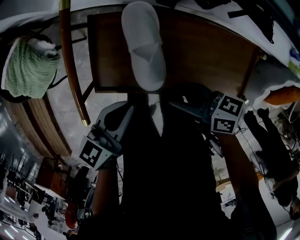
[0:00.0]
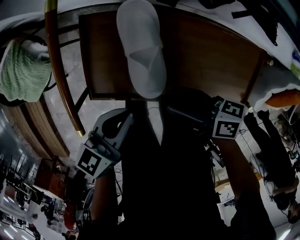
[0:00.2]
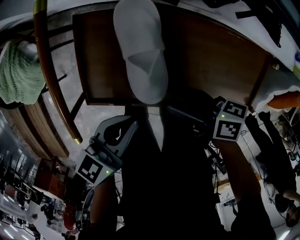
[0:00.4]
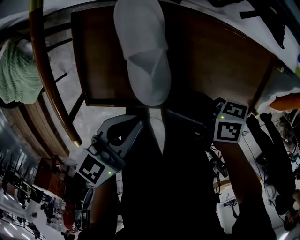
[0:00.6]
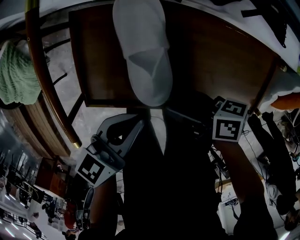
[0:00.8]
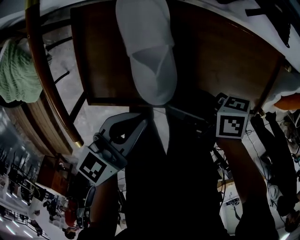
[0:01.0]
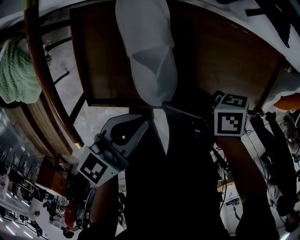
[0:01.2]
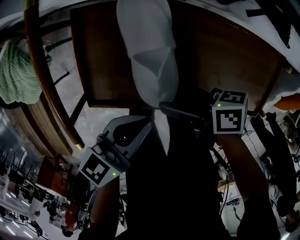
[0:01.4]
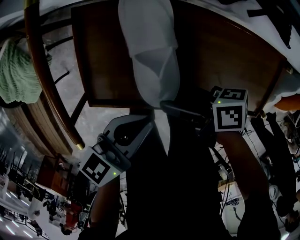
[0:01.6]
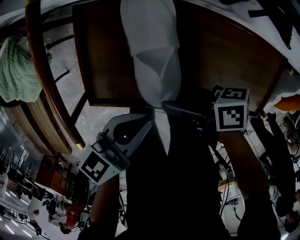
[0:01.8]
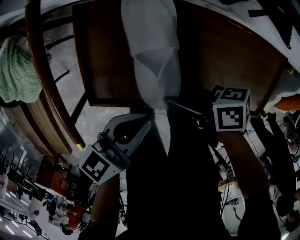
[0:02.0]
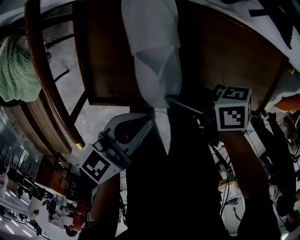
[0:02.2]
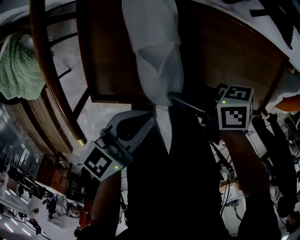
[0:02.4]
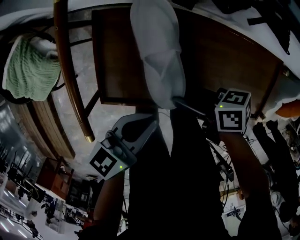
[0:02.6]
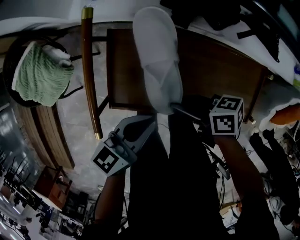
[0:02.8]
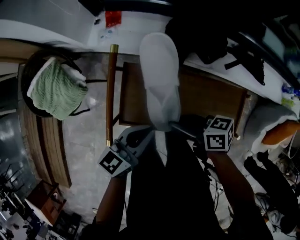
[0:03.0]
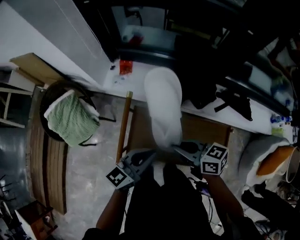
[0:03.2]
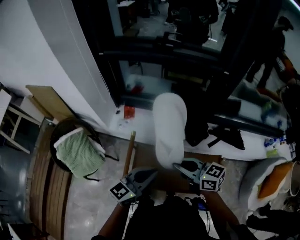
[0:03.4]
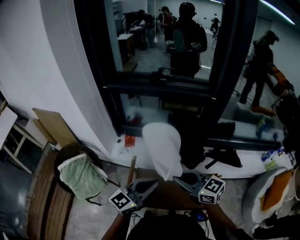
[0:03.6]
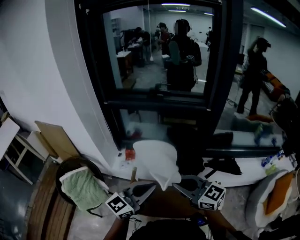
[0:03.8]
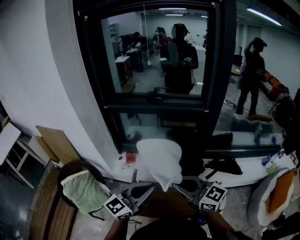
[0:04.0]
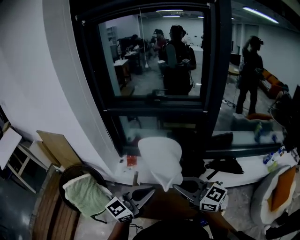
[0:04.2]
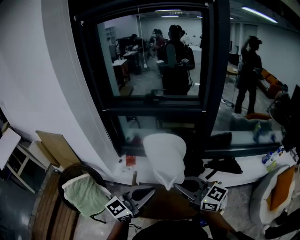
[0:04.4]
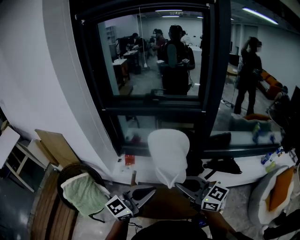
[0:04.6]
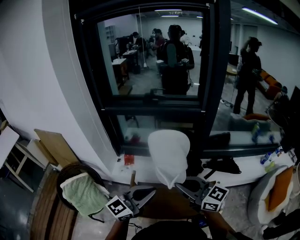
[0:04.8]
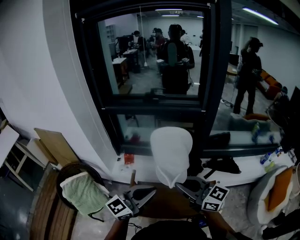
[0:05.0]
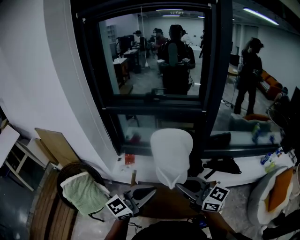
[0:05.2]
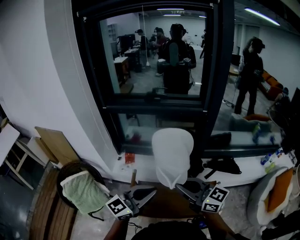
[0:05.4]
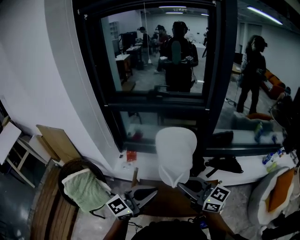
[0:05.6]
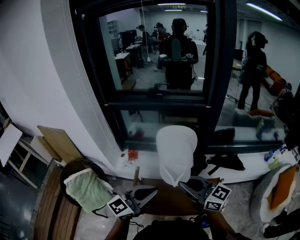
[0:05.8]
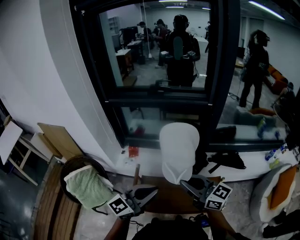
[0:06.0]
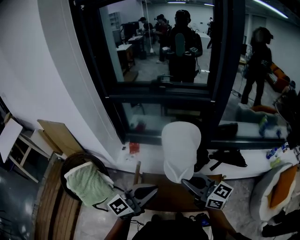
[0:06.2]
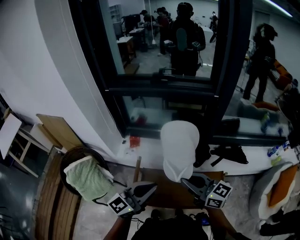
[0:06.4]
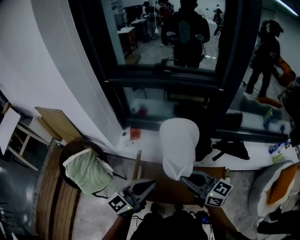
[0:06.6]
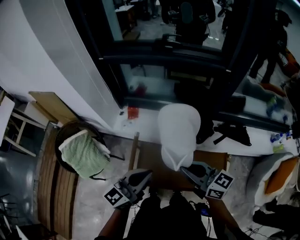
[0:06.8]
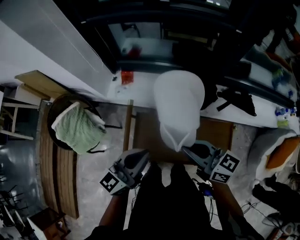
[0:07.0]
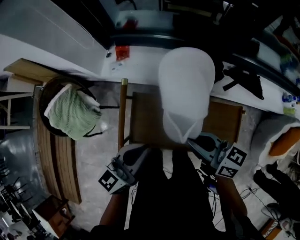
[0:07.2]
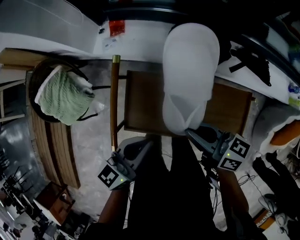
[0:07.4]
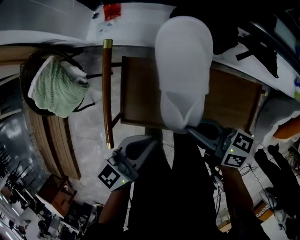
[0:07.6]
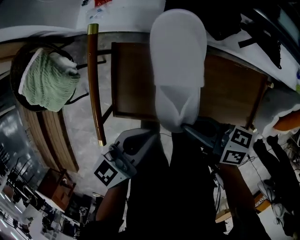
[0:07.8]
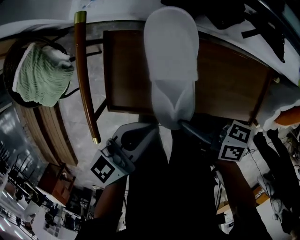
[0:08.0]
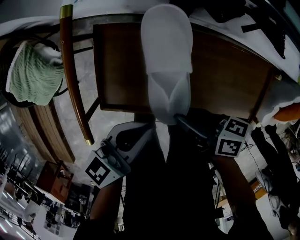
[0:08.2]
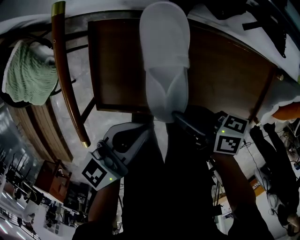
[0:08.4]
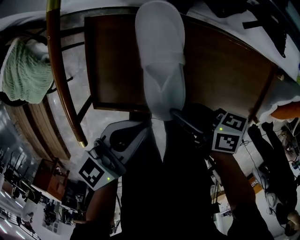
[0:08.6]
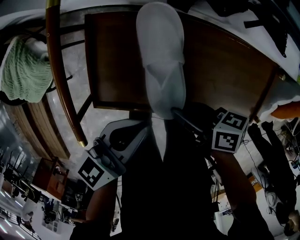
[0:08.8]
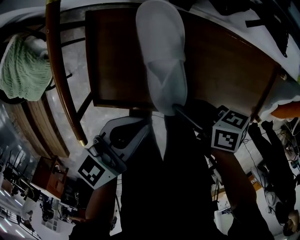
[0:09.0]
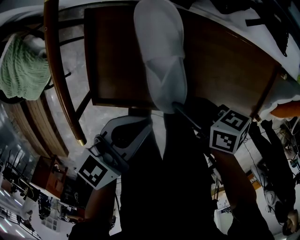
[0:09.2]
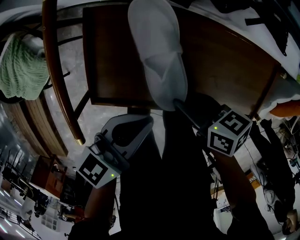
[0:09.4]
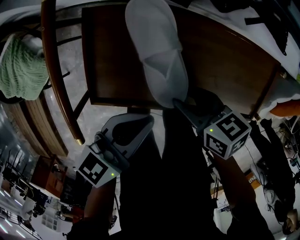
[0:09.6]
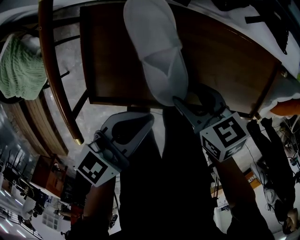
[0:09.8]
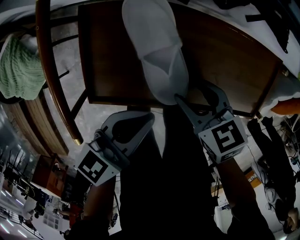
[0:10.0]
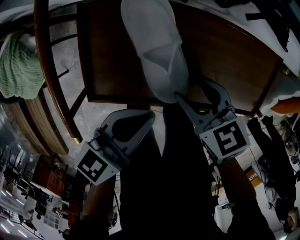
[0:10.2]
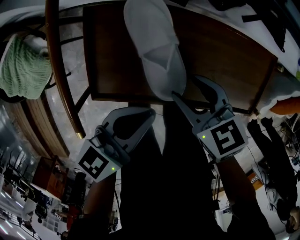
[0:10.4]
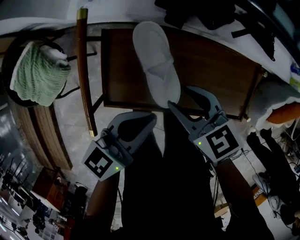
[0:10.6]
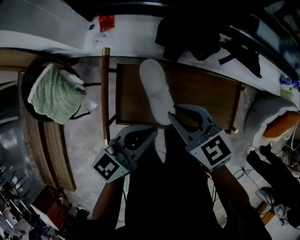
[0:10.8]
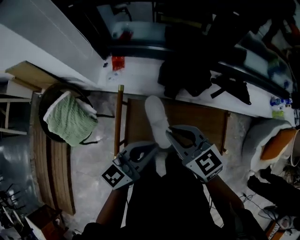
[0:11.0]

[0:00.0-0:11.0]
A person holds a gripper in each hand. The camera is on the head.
0:00.0 to 0:01.6: The right gripper is displaced downward by some 10 cm, and turns by about 20 degrees, while the left gripper shifts roughly 5 cm downward.
0:01.6 to 0:03.2: The two grippers go some 20 cm upward. The right gripper twists approximately 50 degrees counterclockwise, seen from behind, and closes. Meanwhile the left gripper turns by some 20 degrees.
0:03.2 to 0:04.8: Both grippers move upward, some 25 cm. The left gripper rotates about 30 degrees. The right gripper rotates about 40 degrees.
0:04.8 to 0:06.2: The grippers make only small movements.
0:06.2 to 0:07.8: Both grippers move downward, approximately 30 cm. The left gripper turns by roughly 40 degrees. Meanwhile the right gripper rotates around the line of its fingers by roughly 50 degrees, clockwise from behind.
0:07.8 to 0:09.4: The left gripper moves downward, some 5 cm. Meanwhile the right gripper heads downward, covering roughly 10 cm, and swivels some 20 degrees.
0:09.4 to 0:11.0: The grippers both shift upward by some 25 cm. The right gripper rotates around the line of its fingers by about 50 degrees, counterclockwise from behind, and opens and closes again, while the left gripper rotates some 20 degrees.

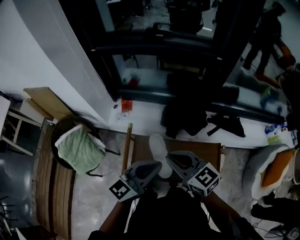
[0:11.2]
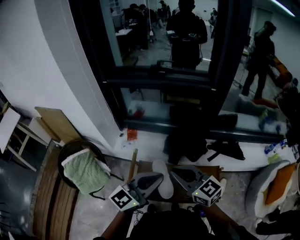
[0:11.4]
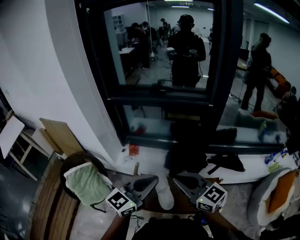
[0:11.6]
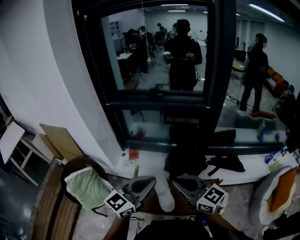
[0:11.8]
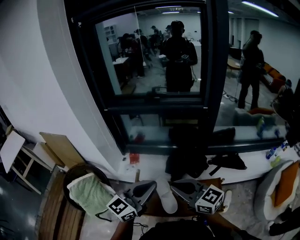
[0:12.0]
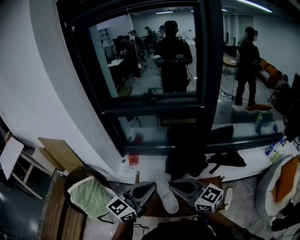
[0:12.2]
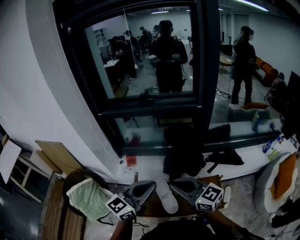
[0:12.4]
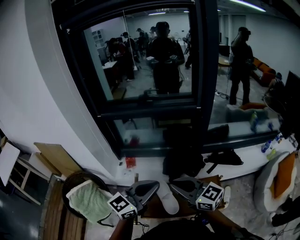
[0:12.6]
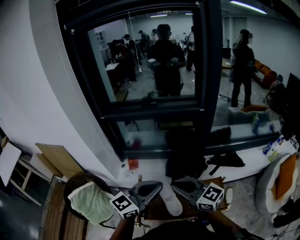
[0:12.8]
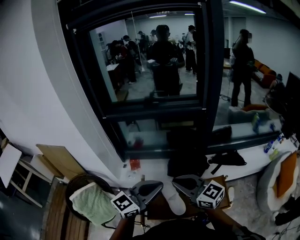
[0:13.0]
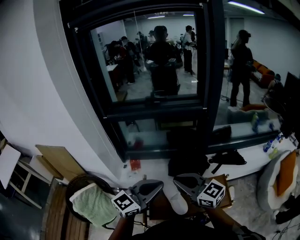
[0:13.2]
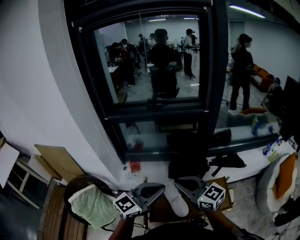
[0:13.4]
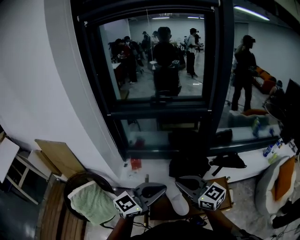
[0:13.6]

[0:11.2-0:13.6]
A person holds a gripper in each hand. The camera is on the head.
0:11.2 to 0:12.4: Both grippers travel together upward, approximately 10 cm.
0:12.4 to 0:13.6: The two grippers go approximately 5 cm to the left.

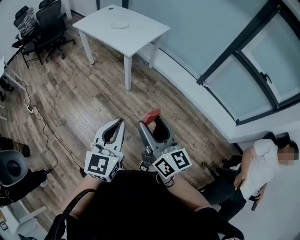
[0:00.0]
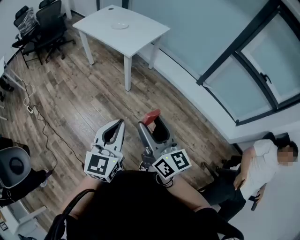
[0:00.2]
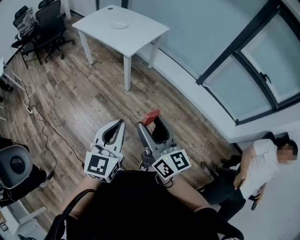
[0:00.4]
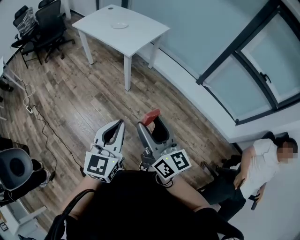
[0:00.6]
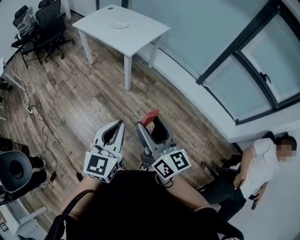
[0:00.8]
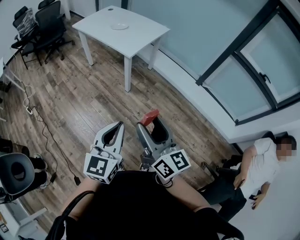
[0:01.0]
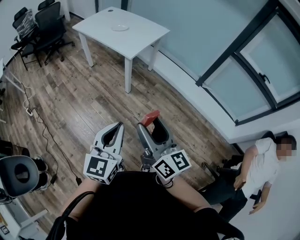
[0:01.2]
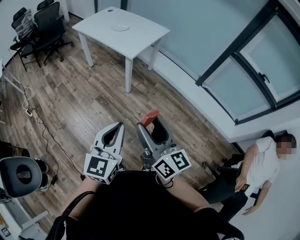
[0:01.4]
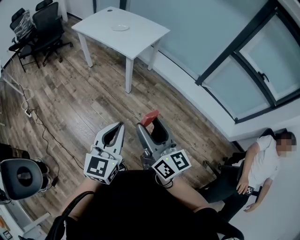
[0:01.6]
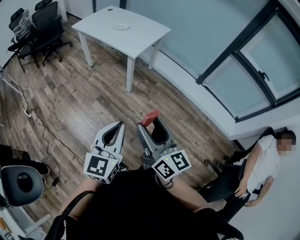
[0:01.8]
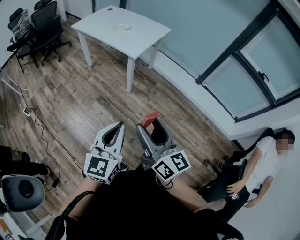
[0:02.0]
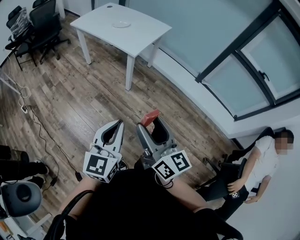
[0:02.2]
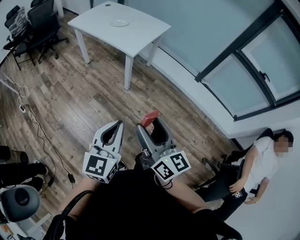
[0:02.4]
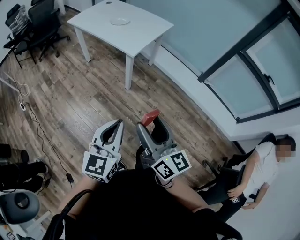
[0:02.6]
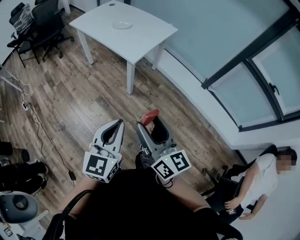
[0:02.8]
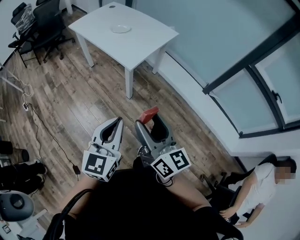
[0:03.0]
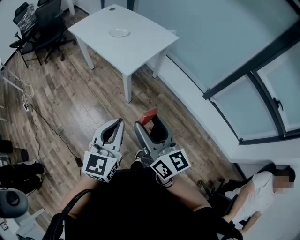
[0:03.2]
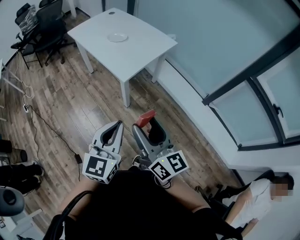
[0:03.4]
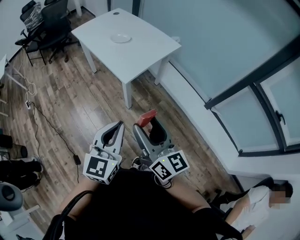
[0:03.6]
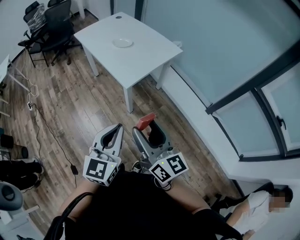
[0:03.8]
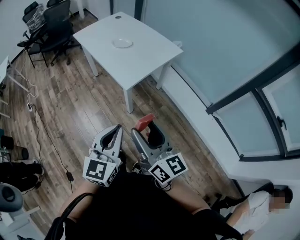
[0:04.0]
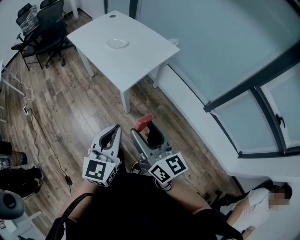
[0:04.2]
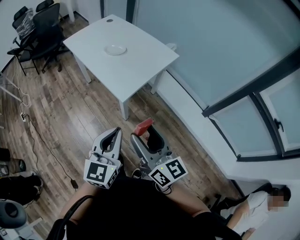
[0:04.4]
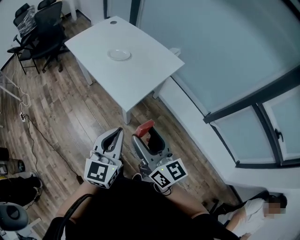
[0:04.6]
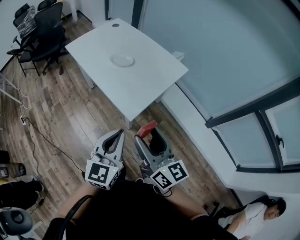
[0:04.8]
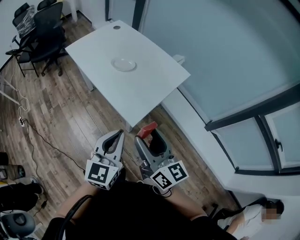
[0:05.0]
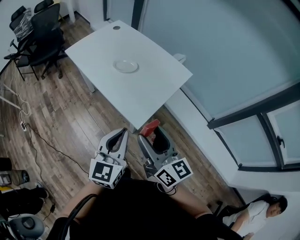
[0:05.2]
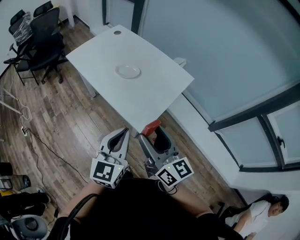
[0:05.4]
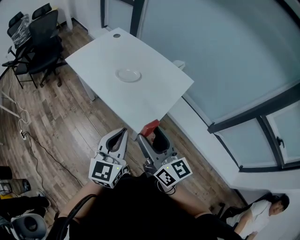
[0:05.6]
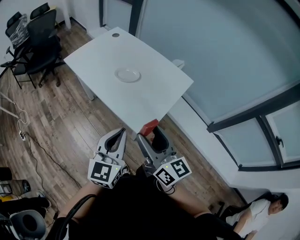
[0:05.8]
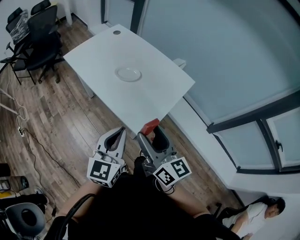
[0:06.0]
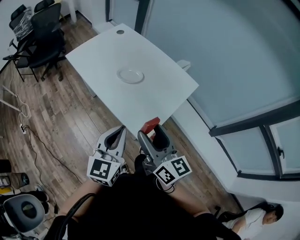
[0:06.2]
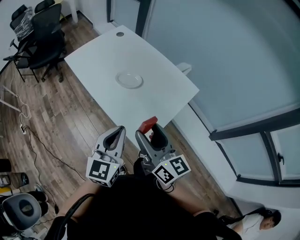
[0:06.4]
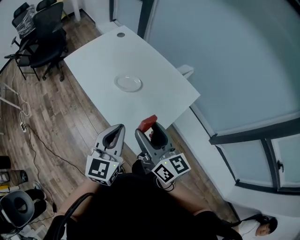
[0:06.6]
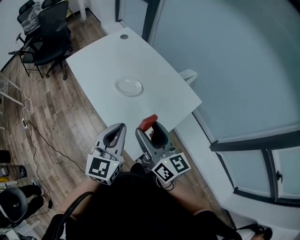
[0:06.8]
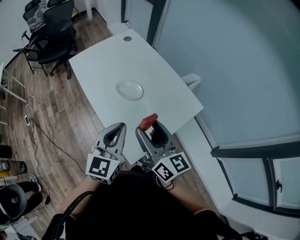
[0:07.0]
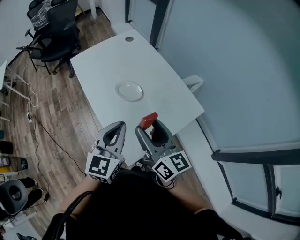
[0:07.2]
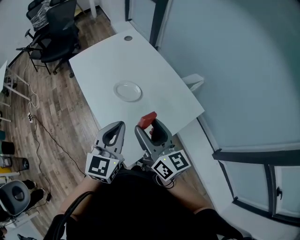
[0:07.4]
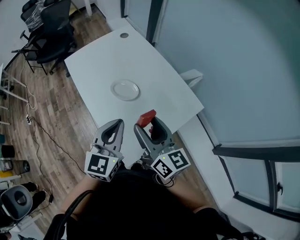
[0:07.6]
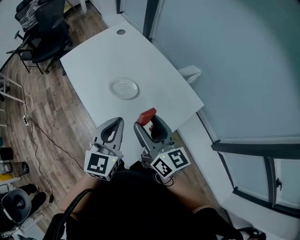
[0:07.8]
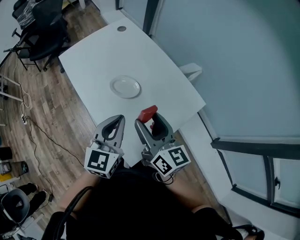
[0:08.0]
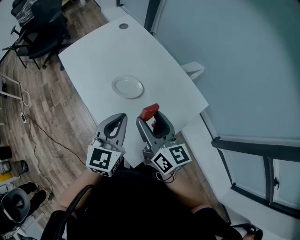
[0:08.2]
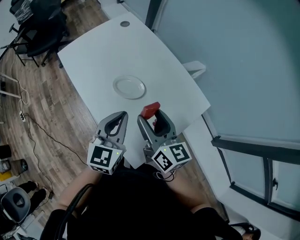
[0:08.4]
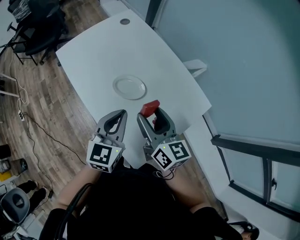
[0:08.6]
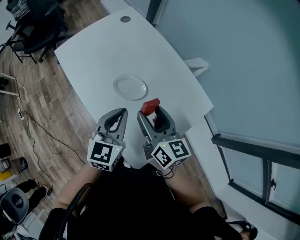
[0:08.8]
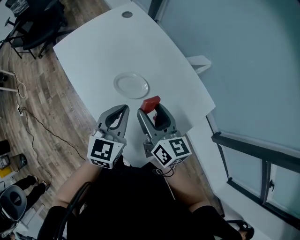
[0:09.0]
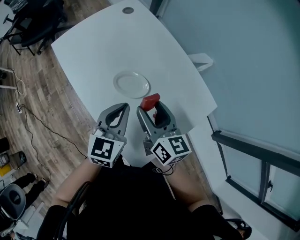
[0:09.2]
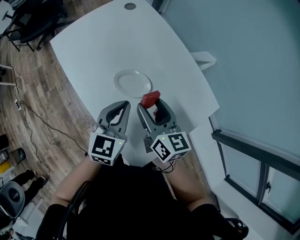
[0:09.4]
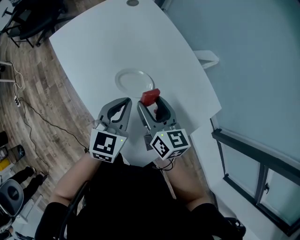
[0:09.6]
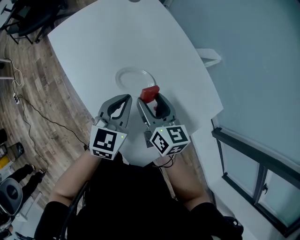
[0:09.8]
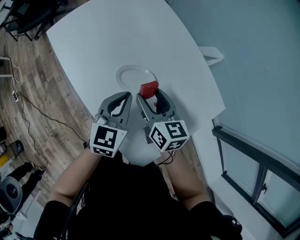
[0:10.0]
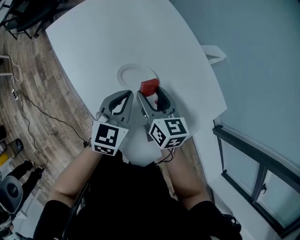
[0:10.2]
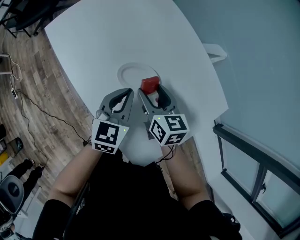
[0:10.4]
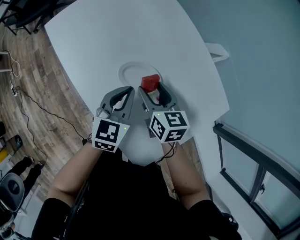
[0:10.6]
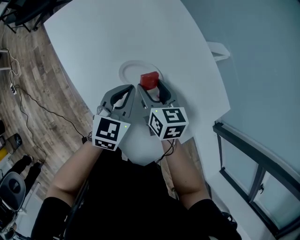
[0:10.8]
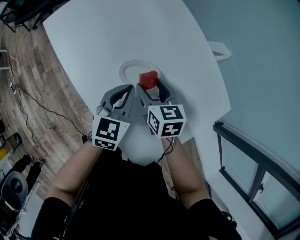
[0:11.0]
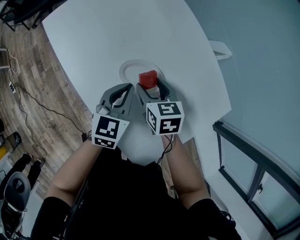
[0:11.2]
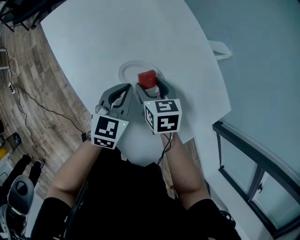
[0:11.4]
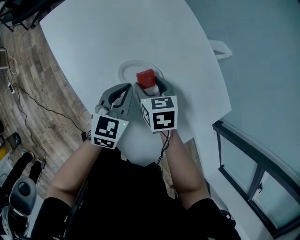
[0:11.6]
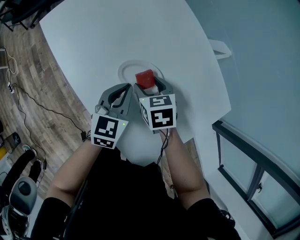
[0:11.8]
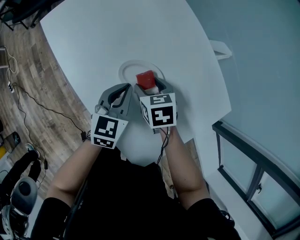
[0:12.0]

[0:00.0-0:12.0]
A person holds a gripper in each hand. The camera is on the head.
0:00.0 to 0:01.6: The right gripper moves to the left, about 5 cm.
0:01.6 to 0:03.0: Both grippers move forward, approximately 20 cm.
0:03.0 to 0:04.4: Both grippers move forward, about 15 cm.
0:04.4 to 0:06.0: The grippers both shift forward and to the left by approximately 25 cm.
0:06.0 to 0:07.6: The right gripper moves forward, about 20 cm. The left gripper travels forward and to the right by some 20 cm.
0:07.6 to 0:09.0: Both grippers move forward and downward, roughly 15 cm.
0:09.0 to 0:10.4: The two grippers go approximately 10 cm downward and forward.
0:10.4 to 0:12.0: The right gripper is displaced downward by approximately 5 cm, and rotates roughly 30 degrees.
